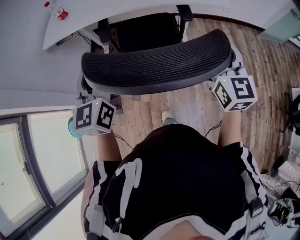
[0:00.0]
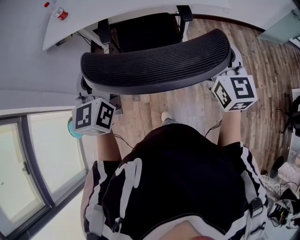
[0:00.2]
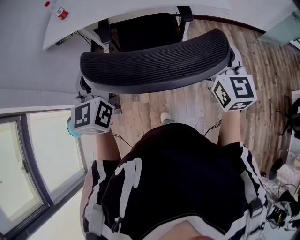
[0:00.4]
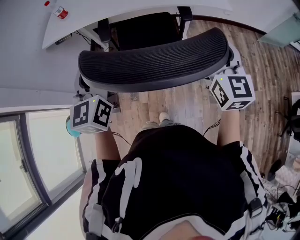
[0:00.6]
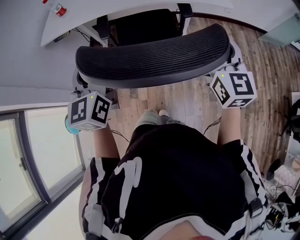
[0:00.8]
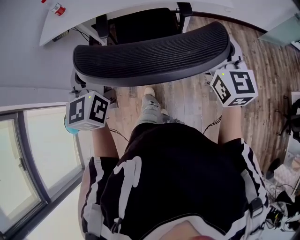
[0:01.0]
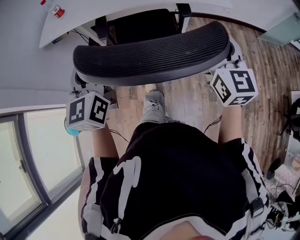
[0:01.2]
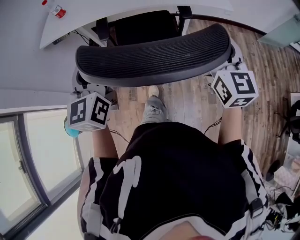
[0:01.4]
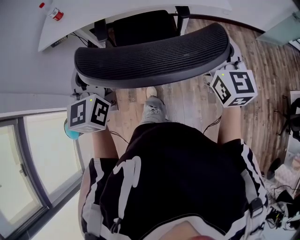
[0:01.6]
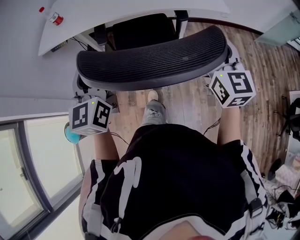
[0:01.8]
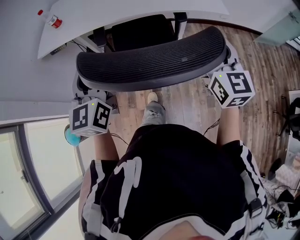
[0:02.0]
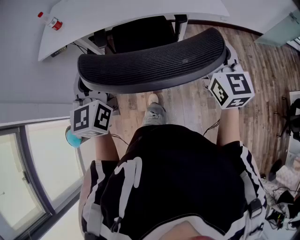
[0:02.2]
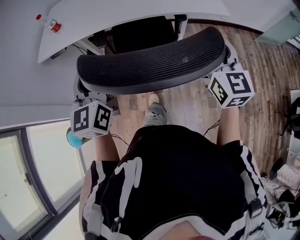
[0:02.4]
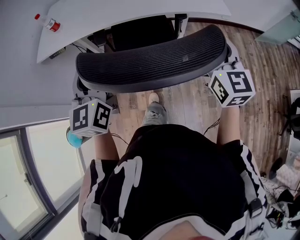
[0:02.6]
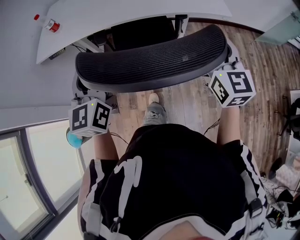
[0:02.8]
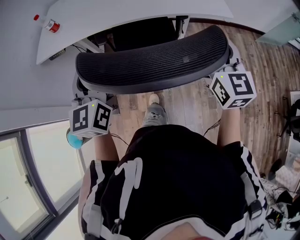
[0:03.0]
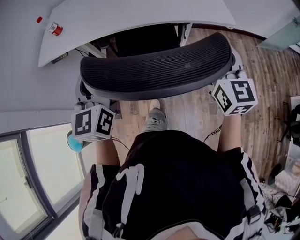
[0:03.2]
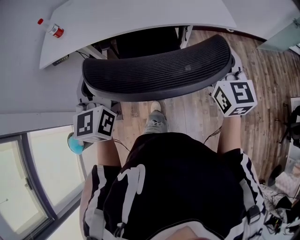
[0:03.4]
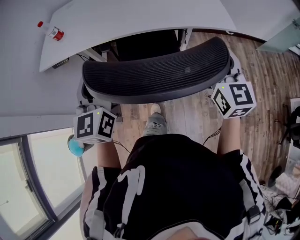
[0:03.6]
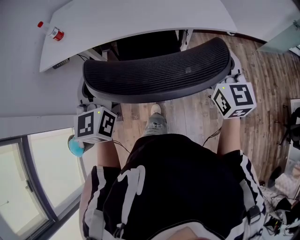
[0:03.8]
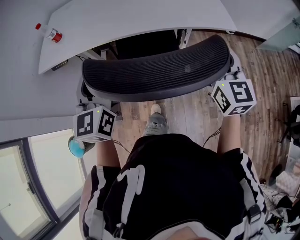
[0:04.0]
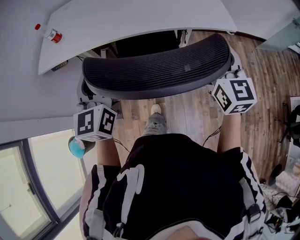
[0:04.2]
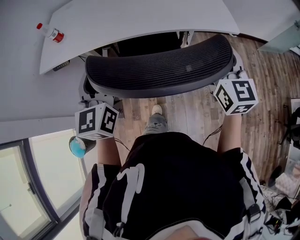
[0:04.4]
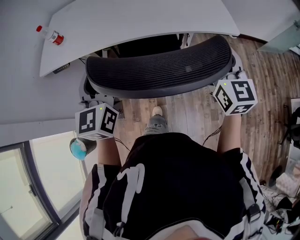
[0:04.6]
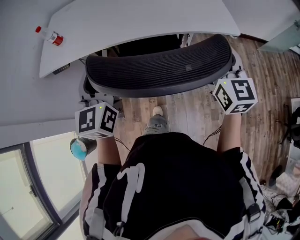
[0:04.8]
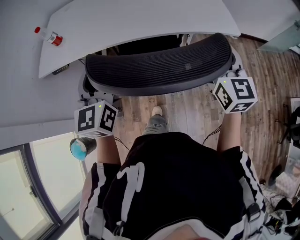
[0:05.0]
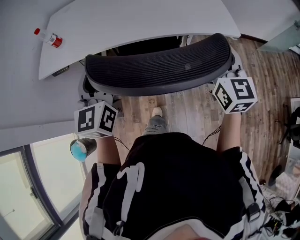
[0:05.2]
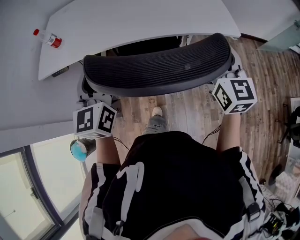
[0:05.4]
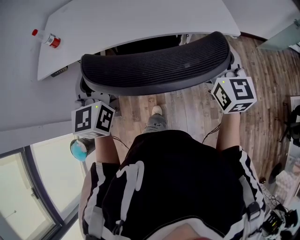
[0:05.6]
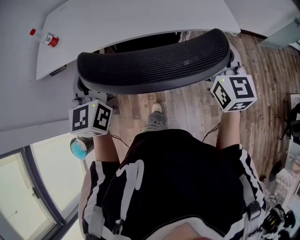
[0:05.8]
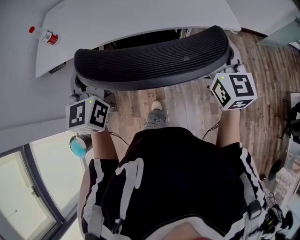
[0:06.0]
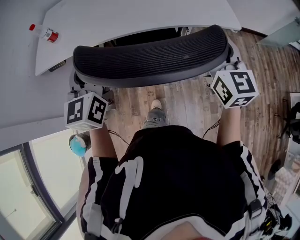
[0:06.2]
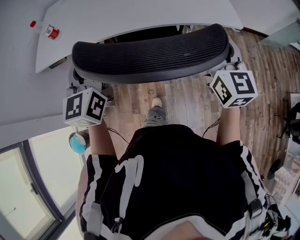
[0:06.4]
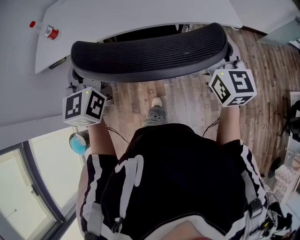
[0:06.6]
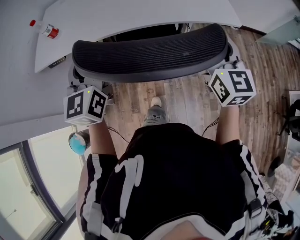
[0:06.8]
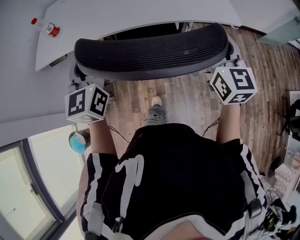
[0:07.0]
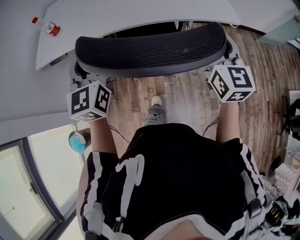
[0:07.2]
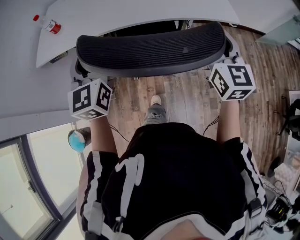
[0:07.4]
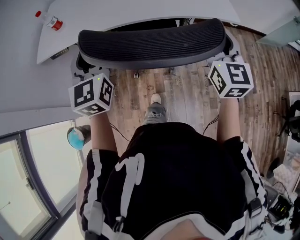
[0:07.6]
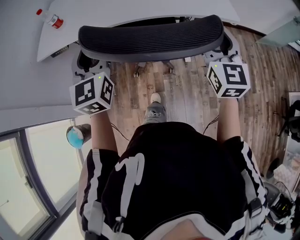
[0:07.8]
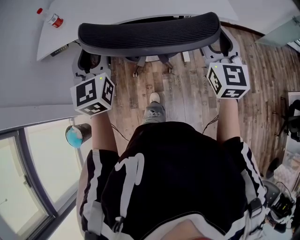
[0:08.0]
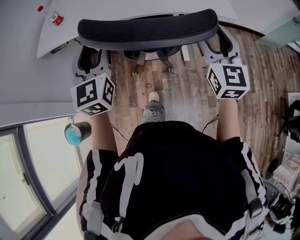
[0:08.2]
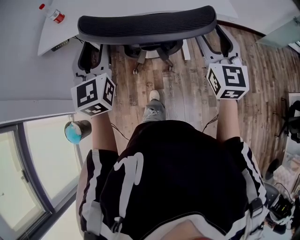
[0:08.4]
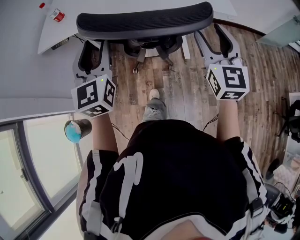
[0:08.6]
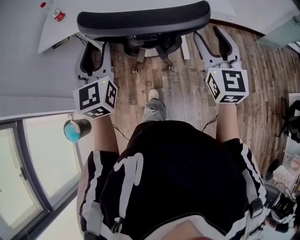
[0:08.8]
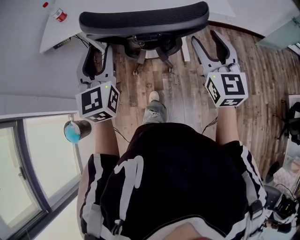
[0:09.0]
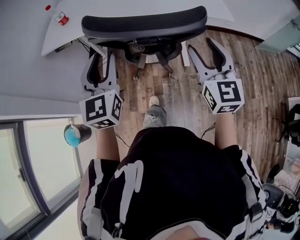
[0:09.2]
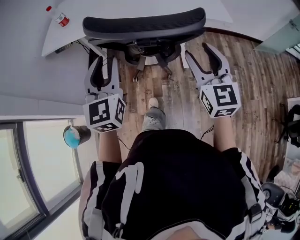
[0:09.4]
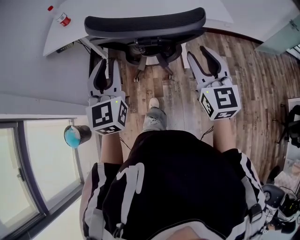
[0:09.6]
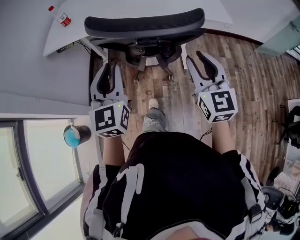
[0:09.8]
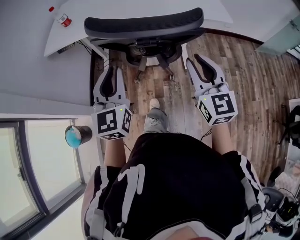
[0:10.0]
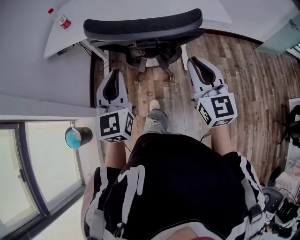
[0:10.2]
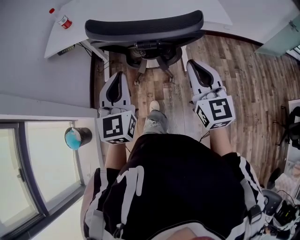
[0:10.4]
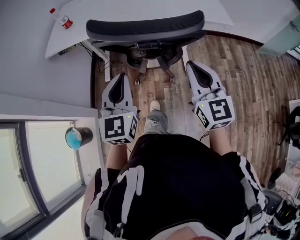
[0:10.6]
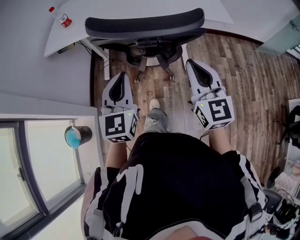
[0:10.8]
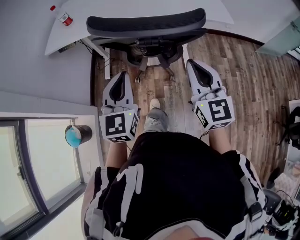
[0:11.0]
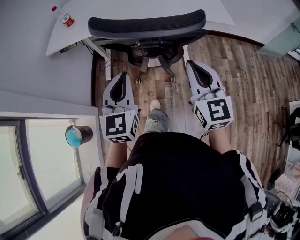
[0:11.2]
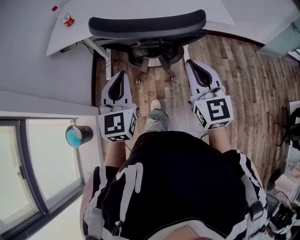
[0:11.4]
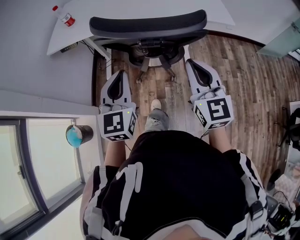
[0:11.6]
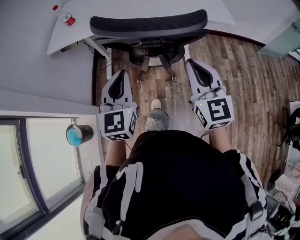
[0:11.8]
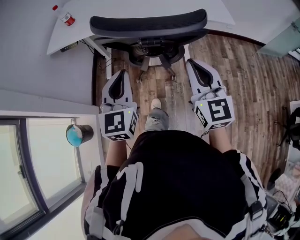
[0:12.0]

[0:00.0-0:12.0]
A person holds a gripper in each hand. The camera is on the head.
0:00.0 to 0:01.6: The grippers move only a little.
0:01.6 to 0:03.0: The two grippers go about 5 cm forward.
0:03.0 to 0:04.4: The grippers both shift forward by about 5 cm.
0:04.4 to 0:07.6: The grippers stay close to where they were, moving slightly.
0:07.6 to 0:09.0: Both grippers travel together backward, about 10 cm.
0:09.0 to 0:10.4: The left gripper goes some 5 cm backward, and closes its fingers, while the right gripper shifts by approximately 5 cm, and closes up.
0:10.4 to 0:12.0: There are only small adjustments of the grippers.

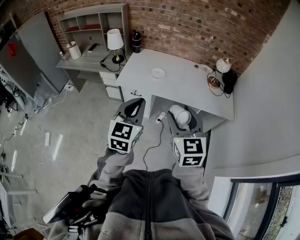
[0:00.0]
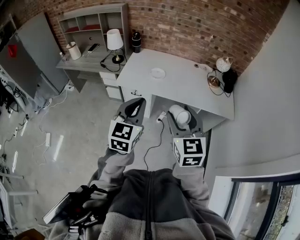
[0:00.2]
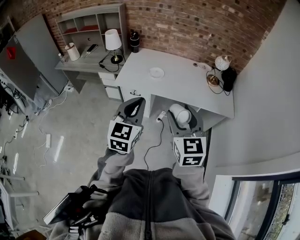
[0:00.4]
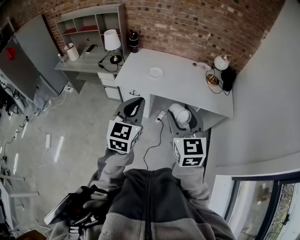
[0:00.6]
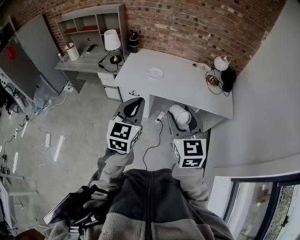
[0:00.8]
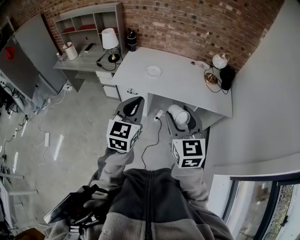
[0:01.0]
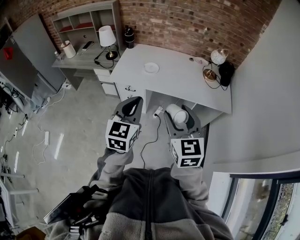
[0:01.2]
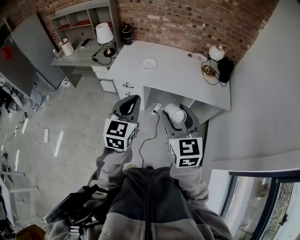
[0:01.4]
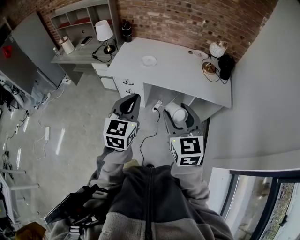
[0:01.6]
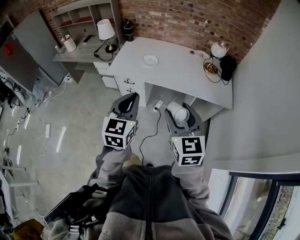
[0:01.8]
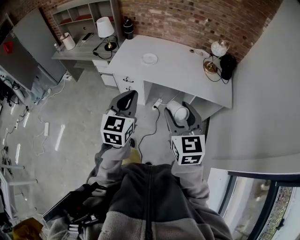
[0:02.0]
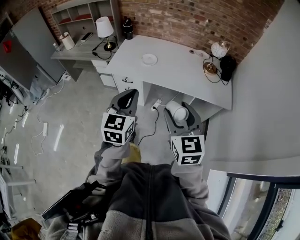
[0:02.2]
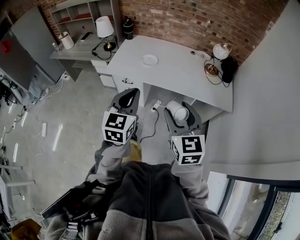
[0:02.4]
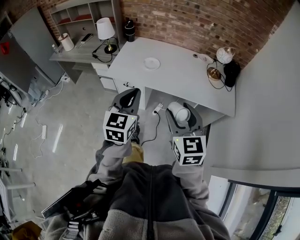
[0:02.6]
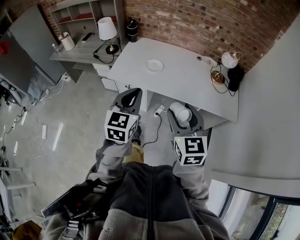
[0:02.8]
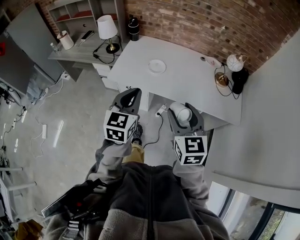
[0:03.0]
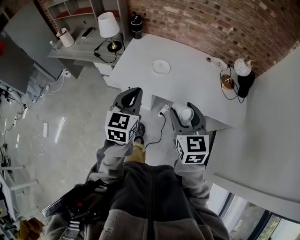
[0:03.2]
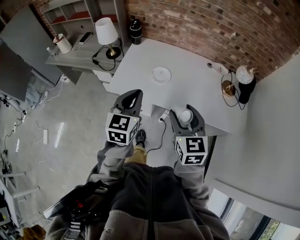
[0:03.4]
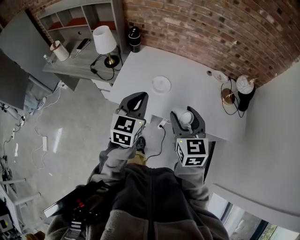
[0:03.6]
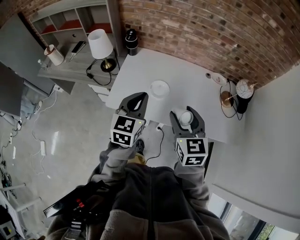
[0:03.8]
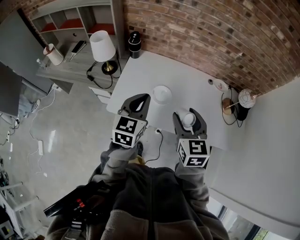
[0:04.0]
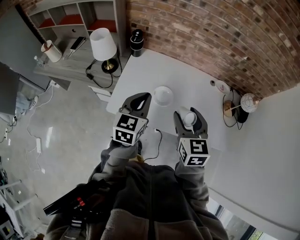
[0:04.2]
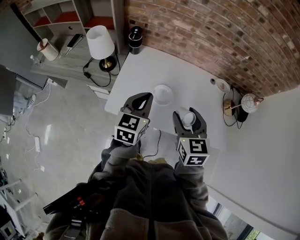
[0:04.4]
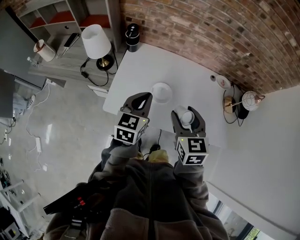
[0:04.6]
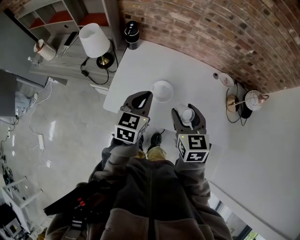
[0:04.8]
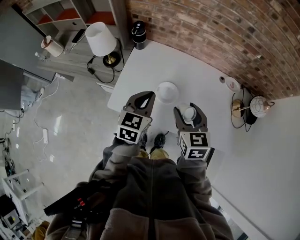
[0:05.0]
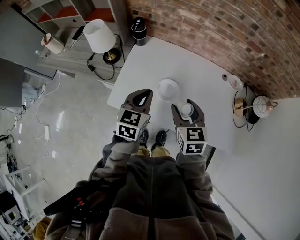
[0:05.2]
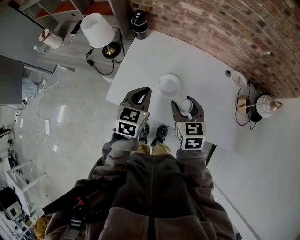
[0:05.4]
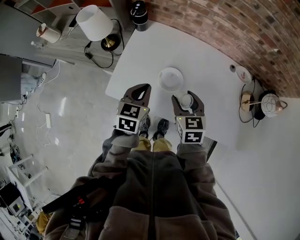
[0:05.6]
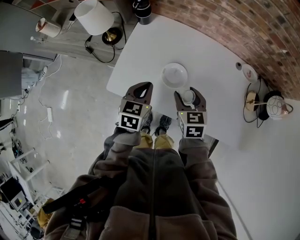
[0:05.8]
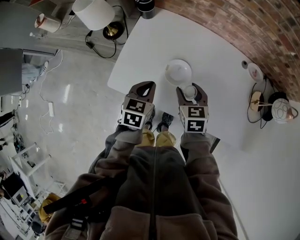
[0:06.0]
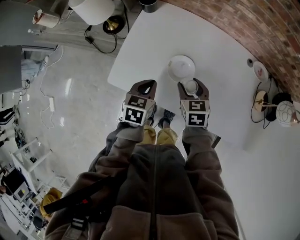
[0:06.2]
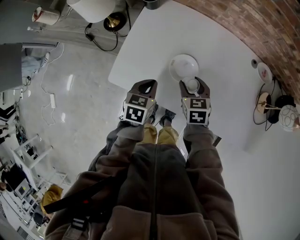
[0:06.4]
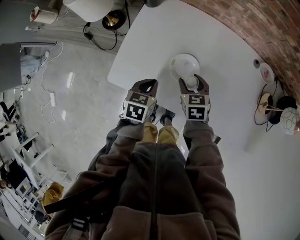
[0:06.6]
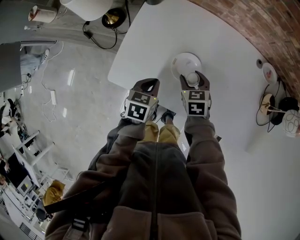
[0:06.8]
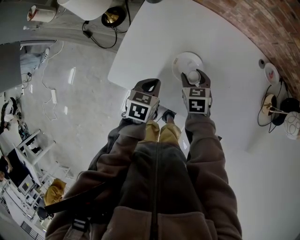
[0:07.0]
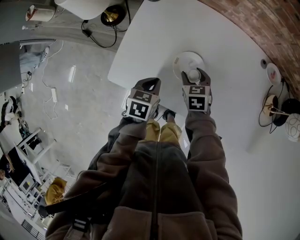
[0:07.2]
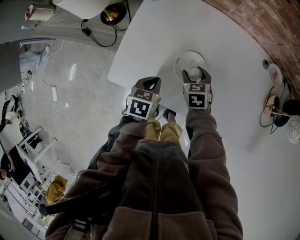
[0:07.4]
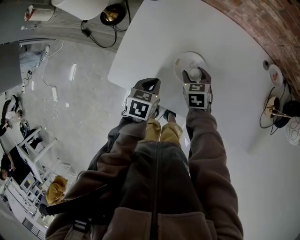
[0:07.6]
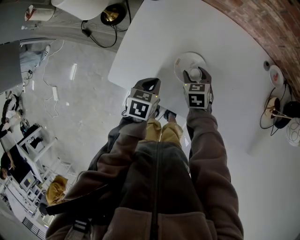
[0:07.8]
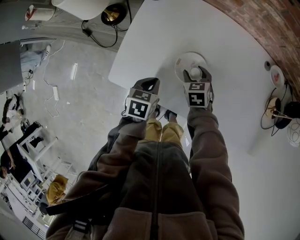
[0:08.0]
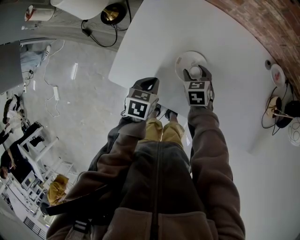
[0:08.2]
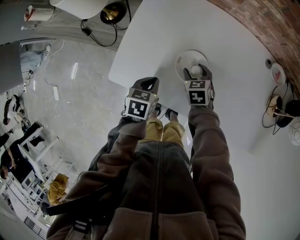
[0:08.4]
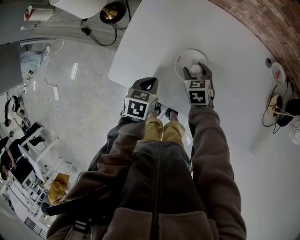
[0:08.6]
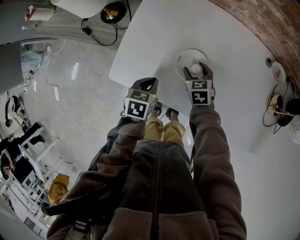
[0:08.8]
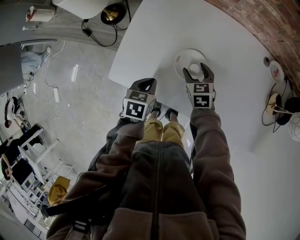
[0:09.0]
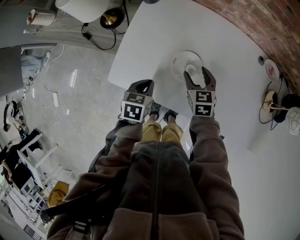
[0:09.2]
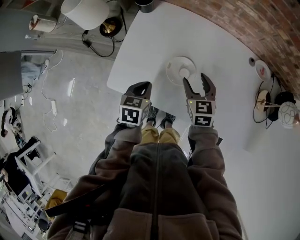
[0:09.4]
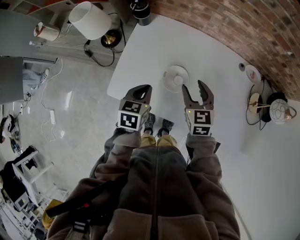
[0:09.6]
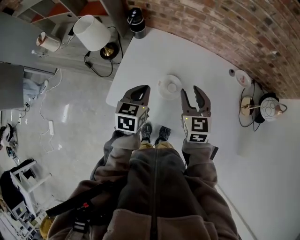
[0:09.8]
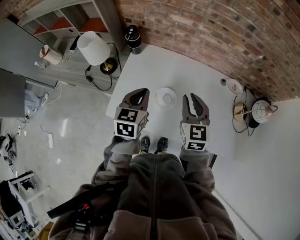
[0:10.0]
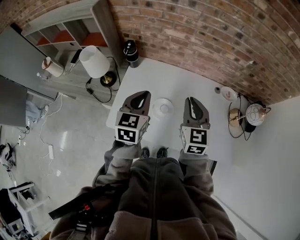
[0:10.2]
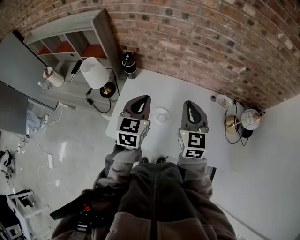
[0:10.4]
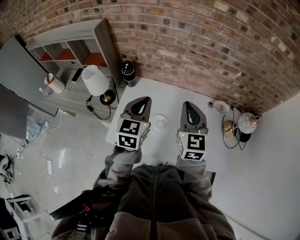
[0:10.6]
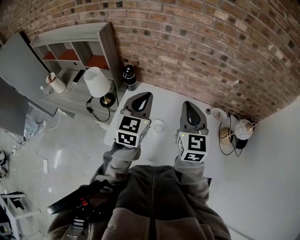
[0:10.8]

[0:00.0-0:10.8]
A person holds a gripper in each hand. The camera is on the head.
0:00.0 to 0:01.6: The two grippers go some 10 cm to the right.
0:01.6 to 0:03.0: The grippers both shift forward by roughly 15 cm.
0:03.0 to 0:04.6: The two grippers go roughly 30 cm forward.
0:04.6 to 0:06.2: The right gripper shifts roughly 25 cm downward and forward, and changes its angle by approximately 20 degrees; the left gripper is displaced downward by about 20 cm, and rotates about 30 degrees.
0:06.2 to 0:07.8: The right gripper travels downward and forward by about 15 cm, while the left gripper shifts about 10 cm downward.
0:07.8 to 0:09.2: The right gripper heads upward, covering some 5 cm.
0:09.2 to 0:10.8: The two grippers go roughly 40 cm upward. The left gripper points its fingers about 50 degrees further upward, while the right gripper angles its fingers upward, by roughly 40 degrees, and closes its fingers.

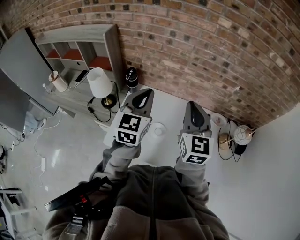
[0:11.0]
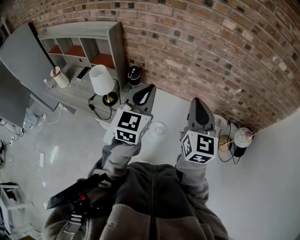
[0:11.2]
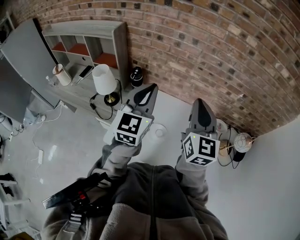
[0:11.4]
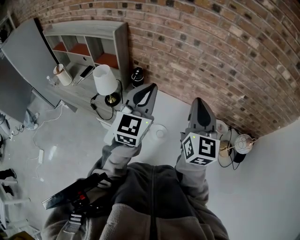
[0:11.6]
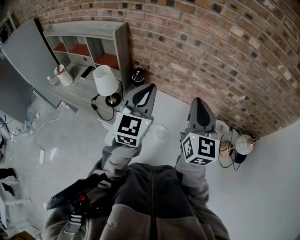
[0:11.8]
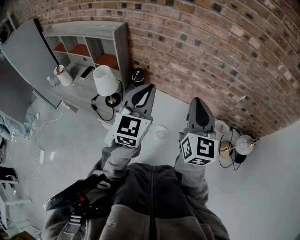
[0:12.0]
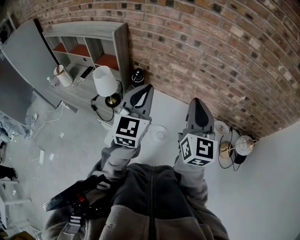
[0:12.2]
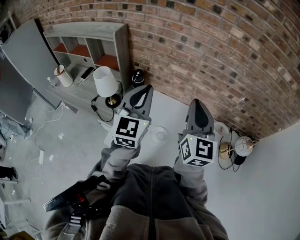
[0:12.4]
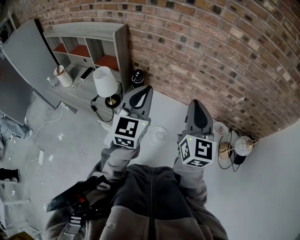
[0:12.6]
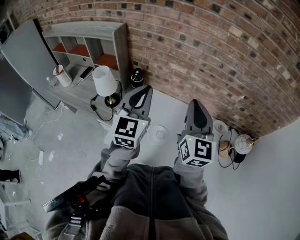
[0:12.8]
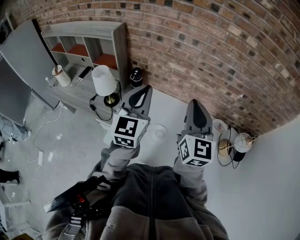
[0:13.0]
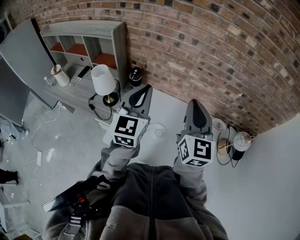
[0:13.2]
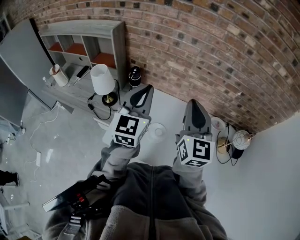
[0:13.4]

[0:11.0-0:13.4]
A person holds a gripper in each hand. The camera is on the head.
0:11.0 to 0:13.4: There are only small adjustments of the grippers.
